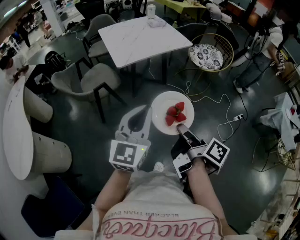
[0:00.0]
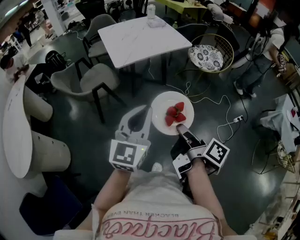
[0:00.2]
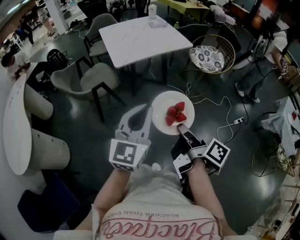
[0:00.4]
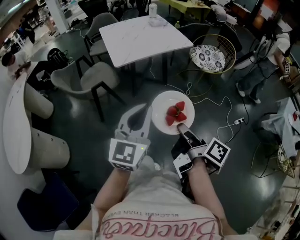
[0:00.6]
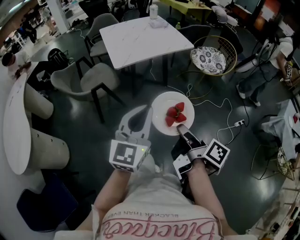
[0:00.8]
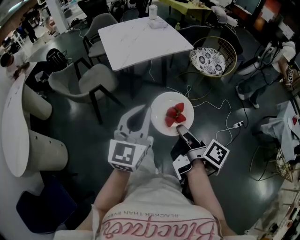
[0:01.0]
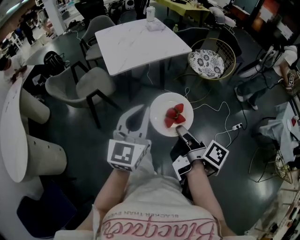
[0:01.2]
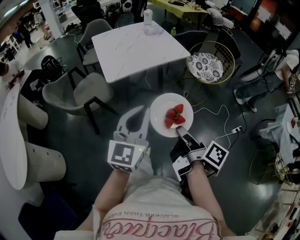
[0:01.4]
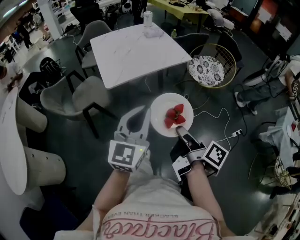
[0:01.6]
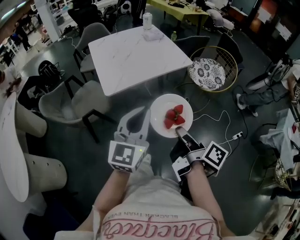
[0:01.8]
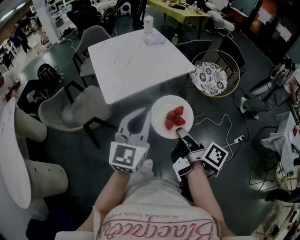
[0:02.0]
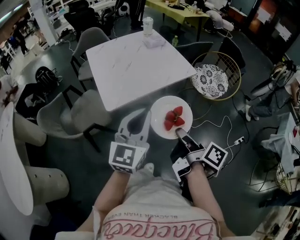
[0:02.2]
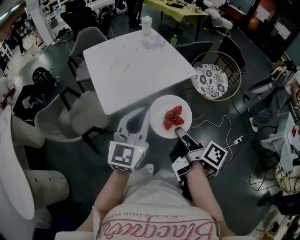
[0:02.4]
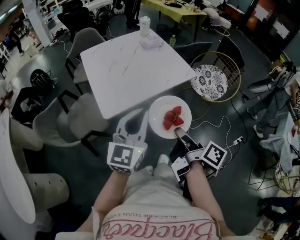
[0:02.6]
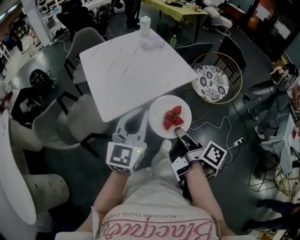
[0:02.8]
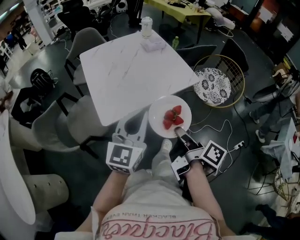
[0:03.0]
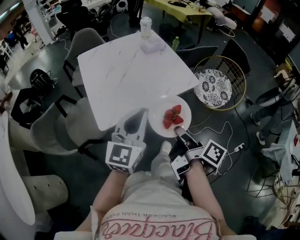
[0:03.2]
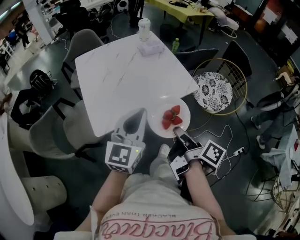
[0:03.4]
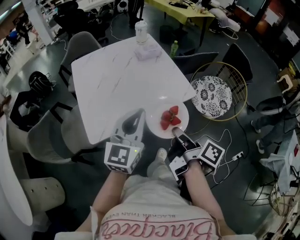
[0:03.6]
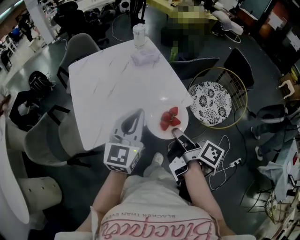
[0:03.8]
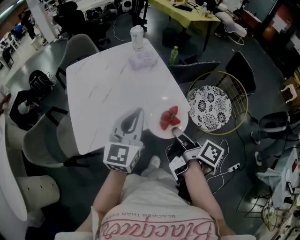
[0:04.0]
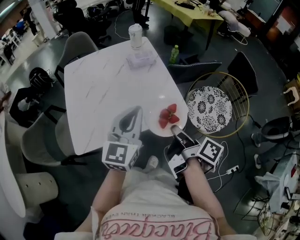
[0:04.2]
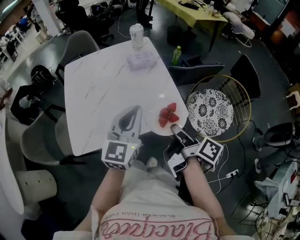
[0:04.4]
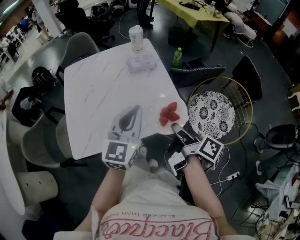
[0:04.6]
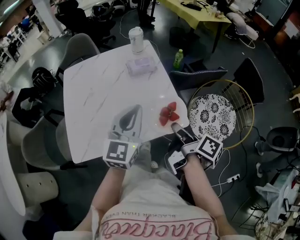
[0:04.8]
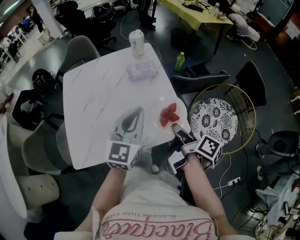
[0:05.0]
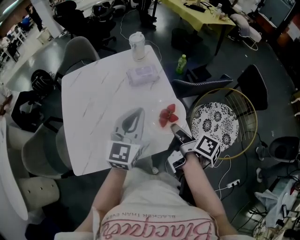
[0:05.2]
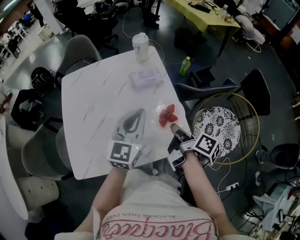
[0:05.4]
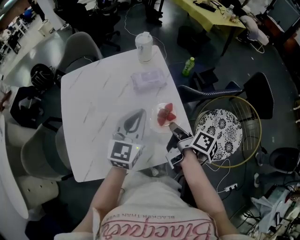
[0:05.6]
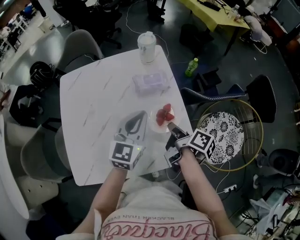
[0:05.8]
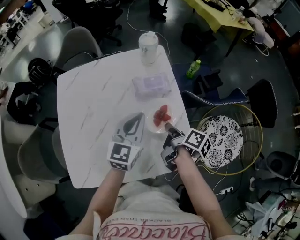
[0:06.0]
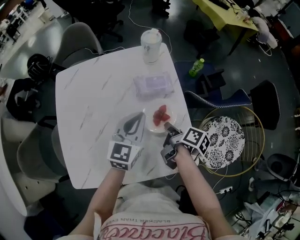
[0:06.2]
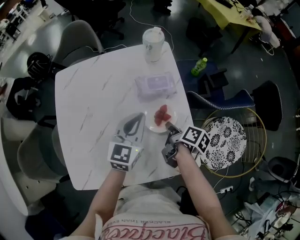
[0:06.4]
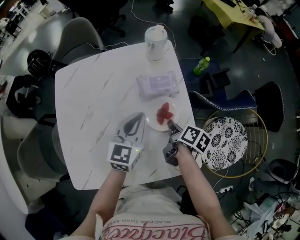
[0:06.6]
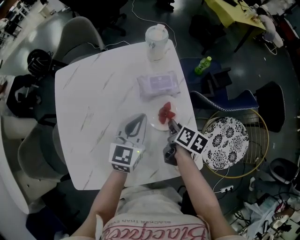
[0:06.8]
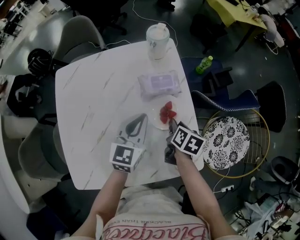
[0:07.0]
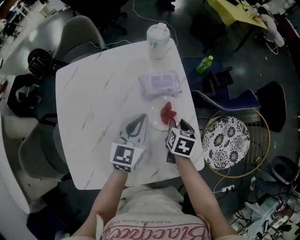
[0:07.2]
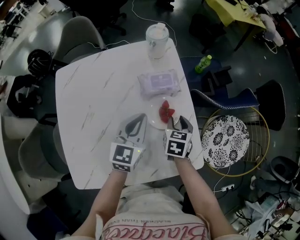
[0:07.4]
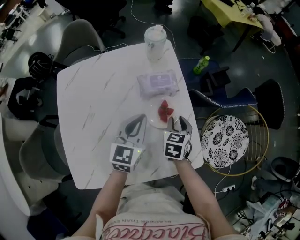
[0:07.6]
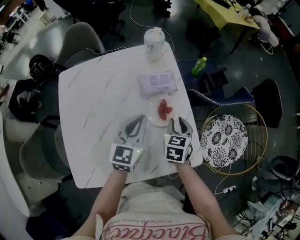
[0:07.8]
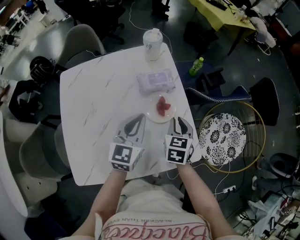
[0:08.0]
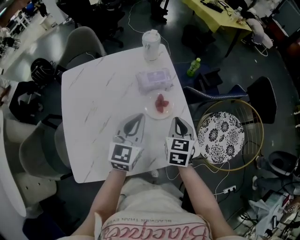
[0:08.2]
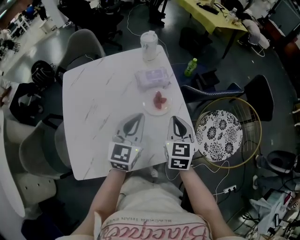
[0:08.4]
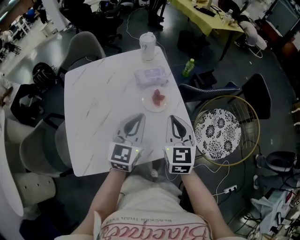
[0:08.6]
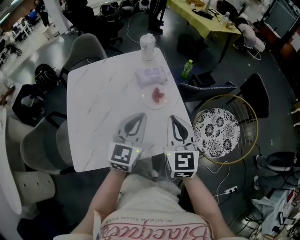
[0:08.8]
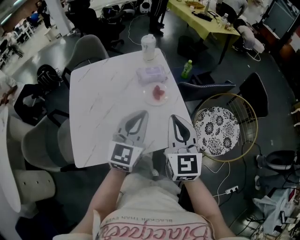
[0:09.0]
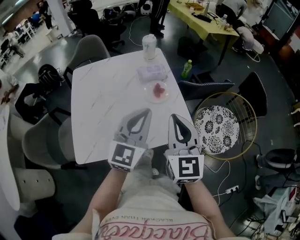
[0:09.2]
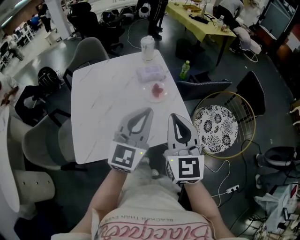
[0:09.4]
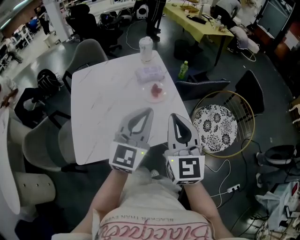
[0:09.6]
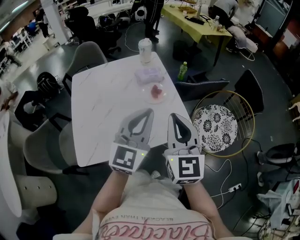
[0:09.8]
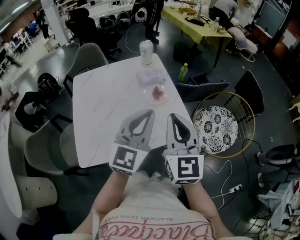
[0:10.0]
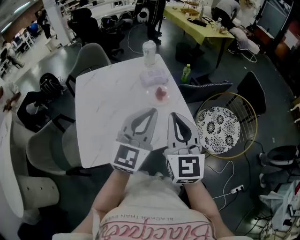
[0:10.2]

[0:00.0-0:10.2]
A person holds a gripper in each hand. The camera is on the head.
0:00.0 to 0:01.4: Both grippers move forward, roughly 15 cm.
0:01.4 to 0:03.0: The grippers both shift forward by some 30 cm.
0:03.0 to 0:04.4: The grippers both shift forward and to the right by approximately 30 cm.
0:04.4 to 0:05.8: Both grippers move forward, approximately 25 cm.
0:05.8 to 0:07.2: The two grippers go approximately 10 cm downward and forward. The right gripper rotates around the line of its fingers by roughly 50 degrees, counterclockwise from behind, and opens up.
0:07.2 to 0:08.8: The right gripper is displaced upward and backward by some 30 cm, points its fingers approximately 40 degrees further upward, and closes its fingers, while the left gripper moves backward and upward, roughly 20 cm.
0:08.8 to 0:10.2: The right gripper is displaced backward and upward by approximately 15 cm; the left gripper shifts about 15 cm upward and backward.

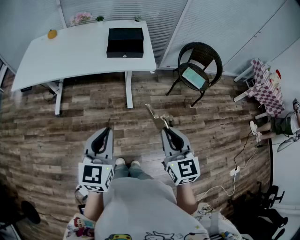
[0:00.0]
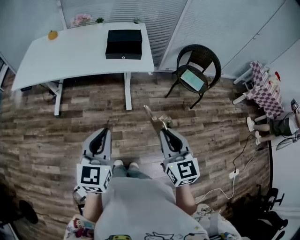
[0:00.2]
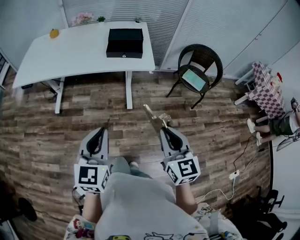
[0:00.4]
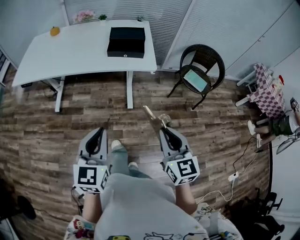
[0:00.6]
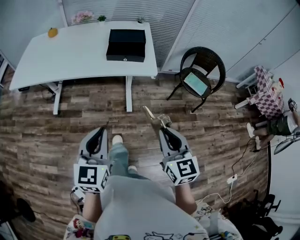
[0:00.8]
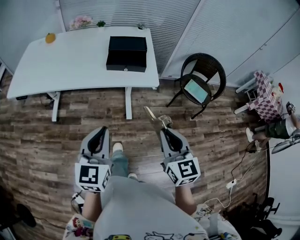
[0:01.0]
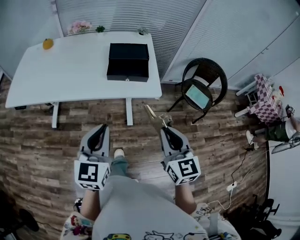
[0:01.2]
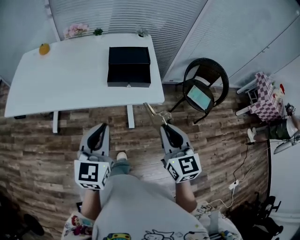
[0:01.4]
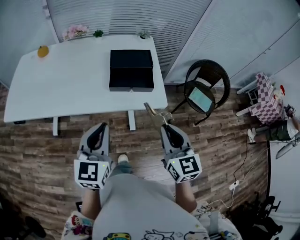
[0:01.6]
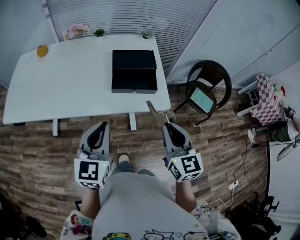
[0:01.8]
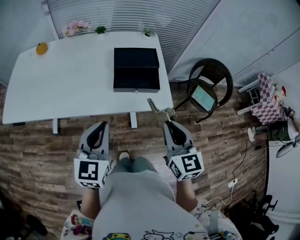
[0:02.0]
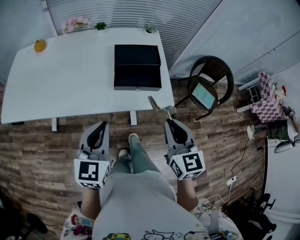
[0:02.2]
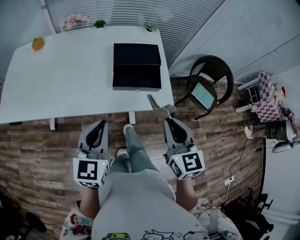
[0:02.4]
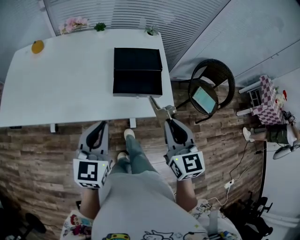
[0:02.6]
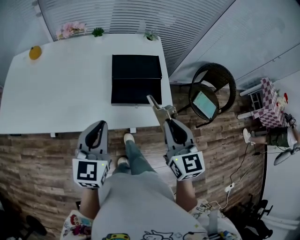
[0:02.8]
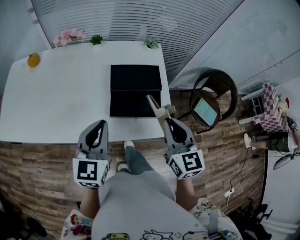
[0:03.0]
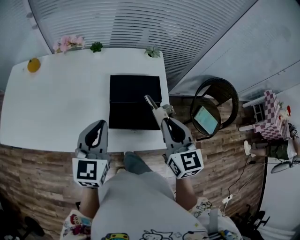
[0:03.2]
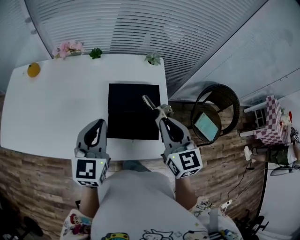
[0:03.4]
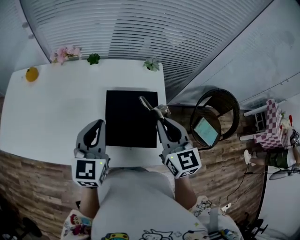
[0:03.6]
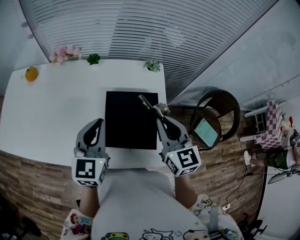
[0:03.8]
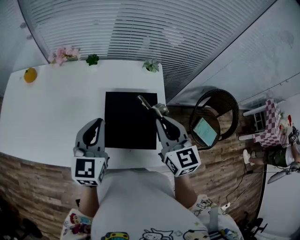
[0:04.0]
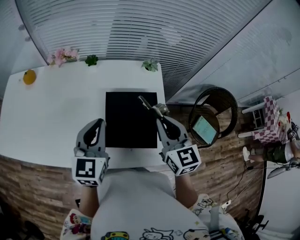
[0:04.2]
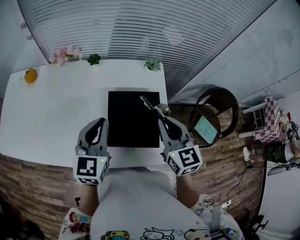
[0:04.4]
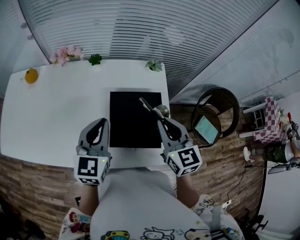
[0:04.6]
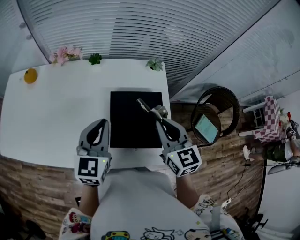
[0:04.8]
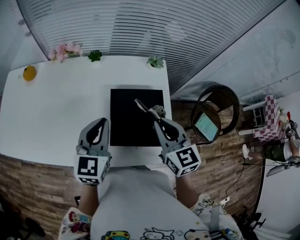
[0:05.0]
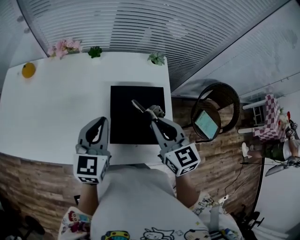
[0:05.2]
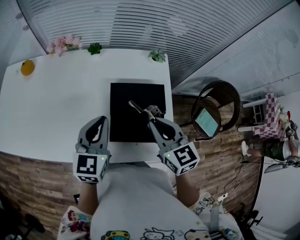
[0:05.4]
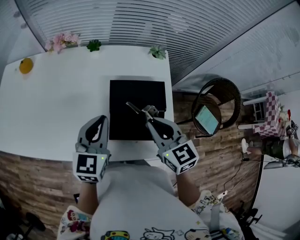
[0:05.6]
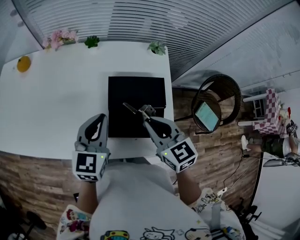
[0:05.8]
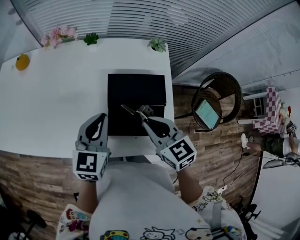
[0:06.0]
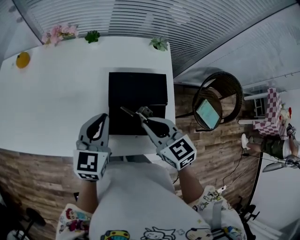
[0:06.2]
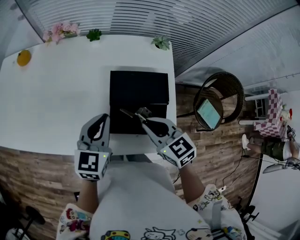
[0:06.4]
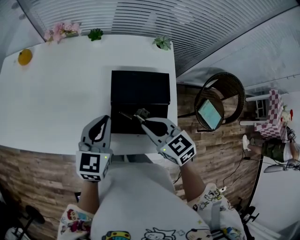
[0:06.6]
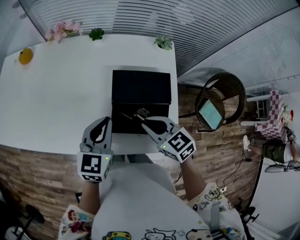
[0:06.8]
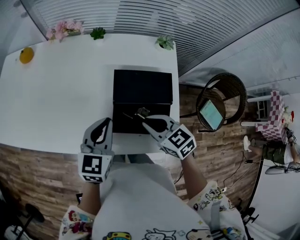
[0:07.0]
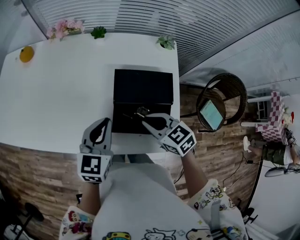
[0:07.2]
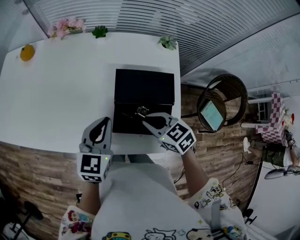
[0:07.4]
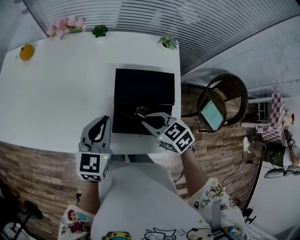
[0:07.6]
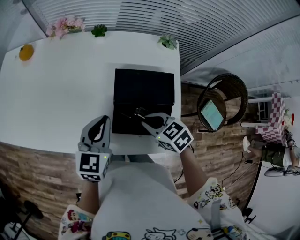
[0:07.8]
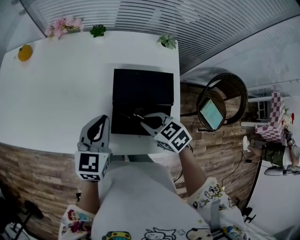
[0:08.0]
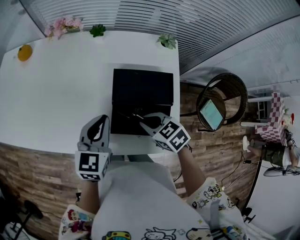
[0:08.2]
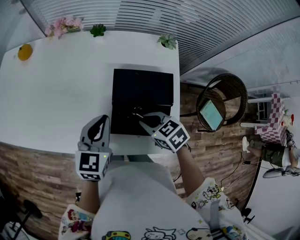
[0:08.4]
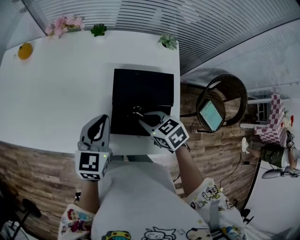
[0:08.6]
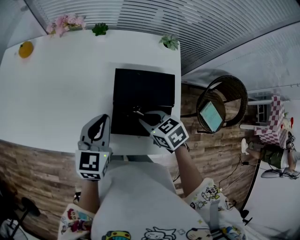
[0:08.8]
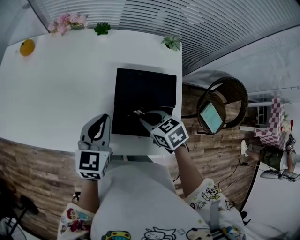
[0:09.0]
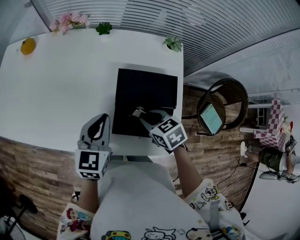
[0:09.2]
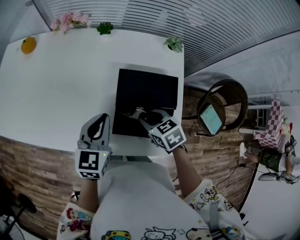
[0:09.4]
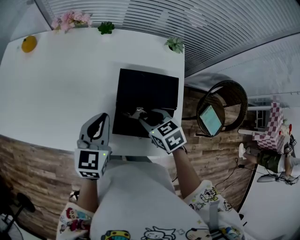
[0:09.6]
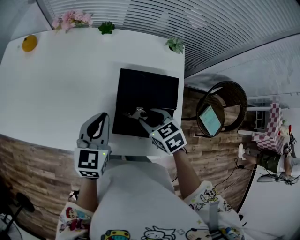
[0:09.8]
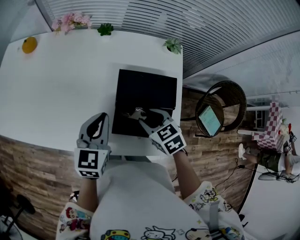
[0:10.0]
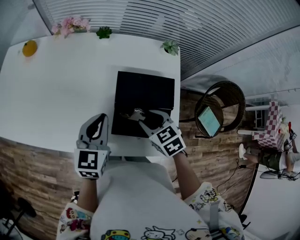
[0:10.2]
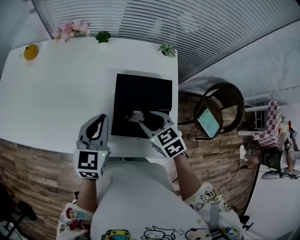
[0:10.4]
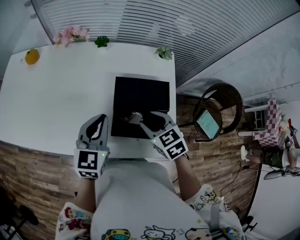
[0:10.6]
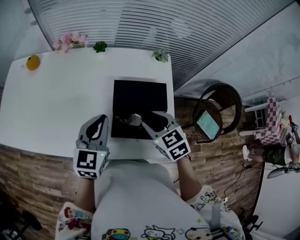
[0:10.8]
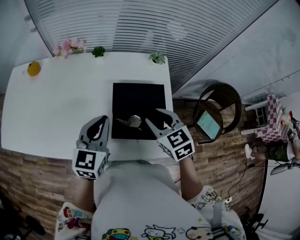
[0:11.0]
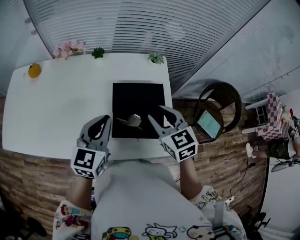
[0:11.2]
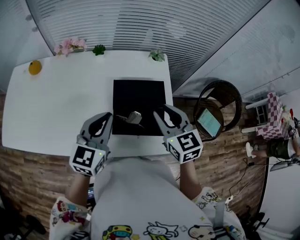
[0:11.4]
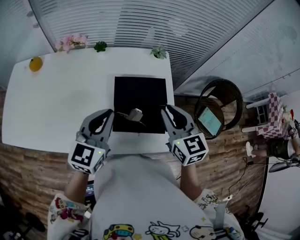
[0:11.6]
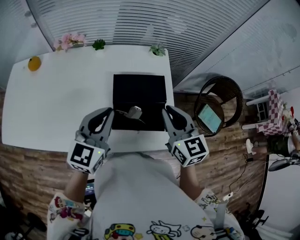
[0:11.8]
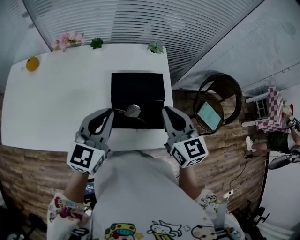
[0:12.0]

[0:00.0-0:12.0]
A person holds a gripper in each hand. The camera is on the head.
0:00.0 to 0:01.6: The grippers both shift forward by about 25 cm.
0:01.6 to 0:03.0: The grippers both shift forward by roughly 20 cm.
0:03.0 to 0:04.4: The grippers both shift forward by roughly 15 cm.
0:04.4 to 0:06.0: The right gripper travels downward and to the left by approximately 10 cm, and changes its angle by some 20 degrees; the left gripper moves downward, some 5 cm.
0:06.0 to 0:07.6: The right gripper shifts about 10 cm downward, and changes its angle by roughly 20 degrees.
0:07.6 to 0:09.0: The grippers move only a little.
0:09.0 to 0:10.4: The right gripper opens.
0:10.4 to 0:12.0: The right gripper moves upward and to the right, about 15 cm, points its fingers roughly 30 degrees further upward, and closes its fingers; the left gripper travels upward by roughly 10 cm.

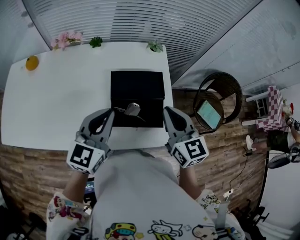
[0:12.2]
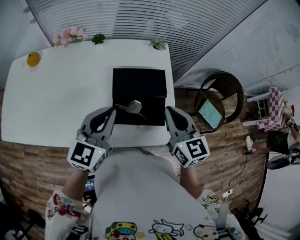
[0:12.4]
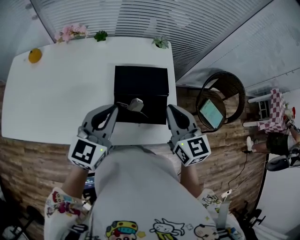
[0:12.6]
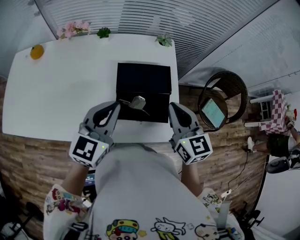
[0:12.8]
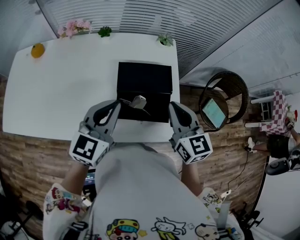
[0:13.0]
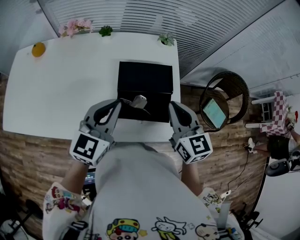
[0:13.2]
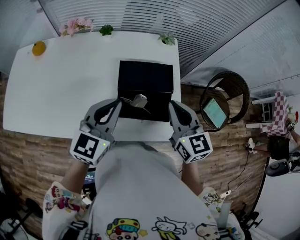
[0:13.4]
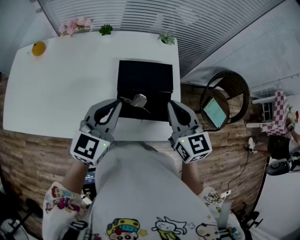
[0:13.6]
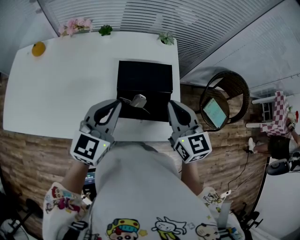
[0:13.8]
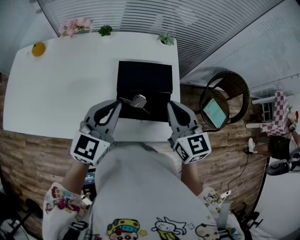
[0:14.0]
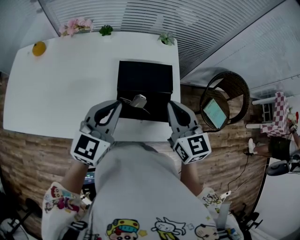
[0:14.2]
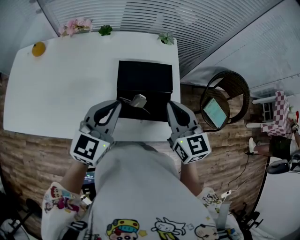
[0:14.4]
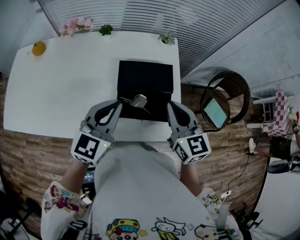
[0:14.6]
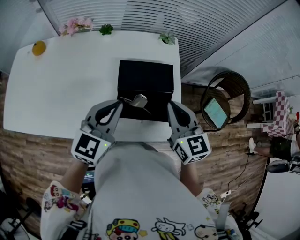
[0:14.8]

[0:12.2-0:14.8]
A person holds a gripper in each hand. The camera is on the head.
0:12.2 to 0:13.4: Both grippers stay about where they are.
0:13.4 to 0:14.8: Both grippers stay put.
